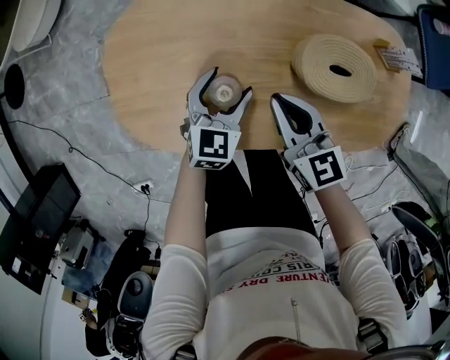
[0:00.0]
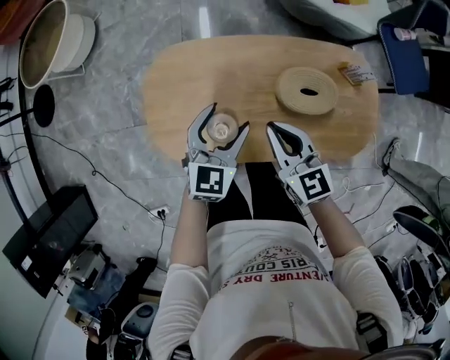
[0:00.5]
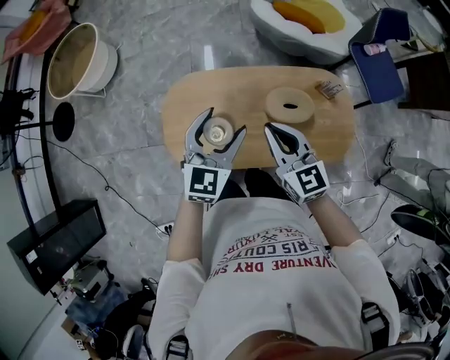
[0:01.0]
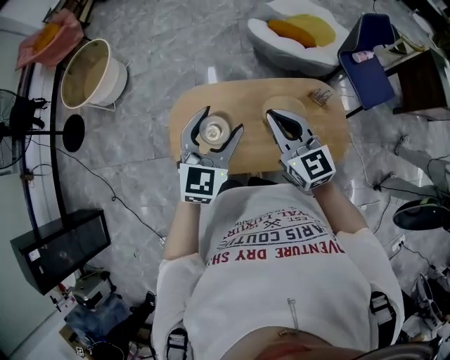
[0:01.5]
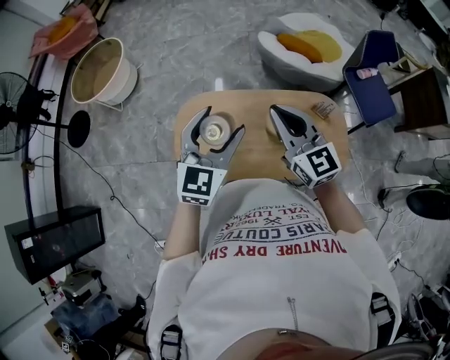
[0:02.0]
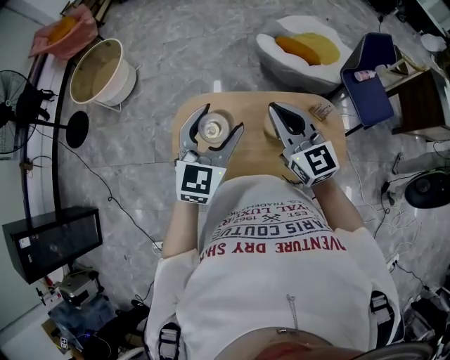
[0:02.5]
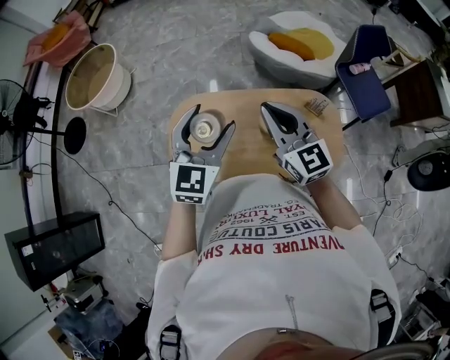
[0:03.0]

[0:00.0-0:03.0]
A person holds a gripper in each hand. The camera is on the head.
0:00.0 to 0:01.5: The two grippers go about 40 cm upward. The left gripper turns by approximately 30 degrees; the right gripper changes its angle by approximately 20 degrees.
0:01.5 to 0:03.0: The grippers stay close to where they were, moving slightly.

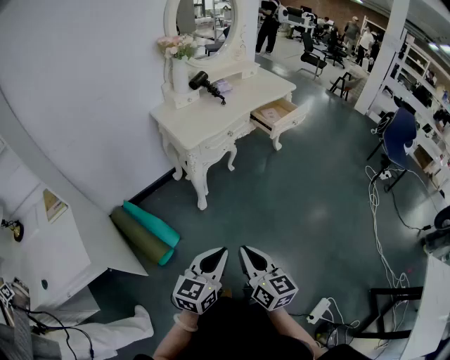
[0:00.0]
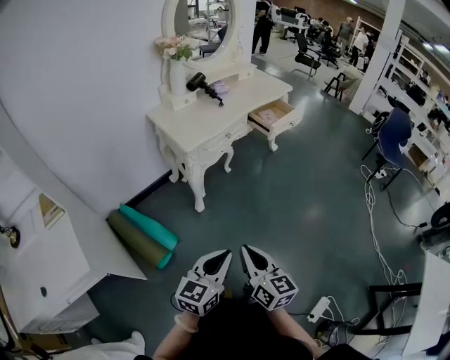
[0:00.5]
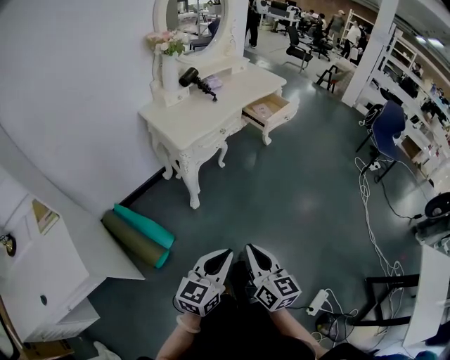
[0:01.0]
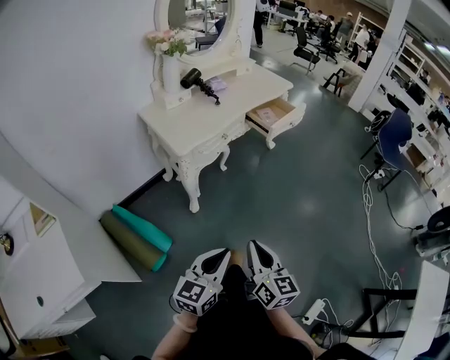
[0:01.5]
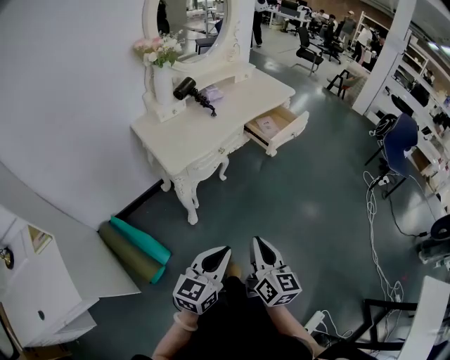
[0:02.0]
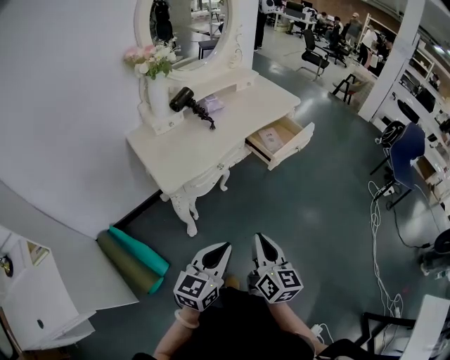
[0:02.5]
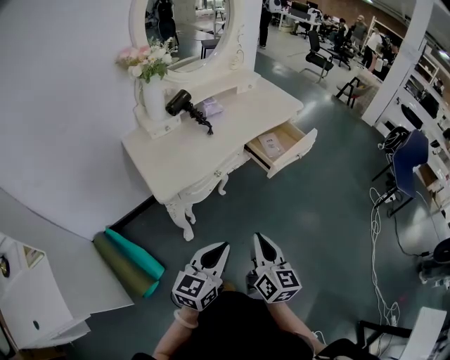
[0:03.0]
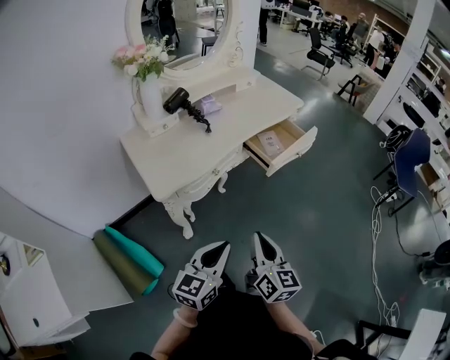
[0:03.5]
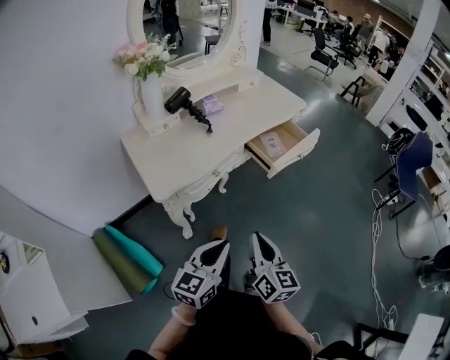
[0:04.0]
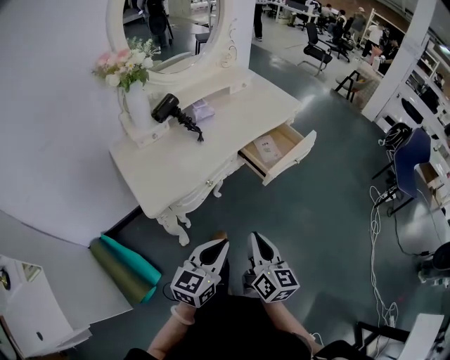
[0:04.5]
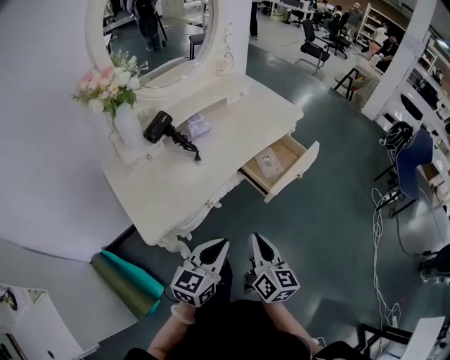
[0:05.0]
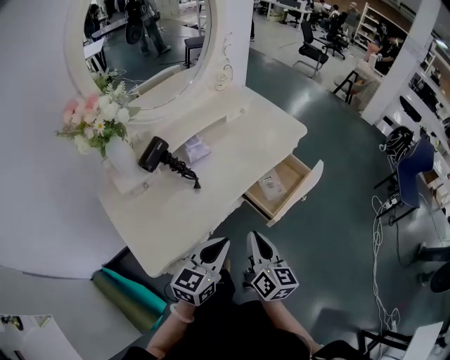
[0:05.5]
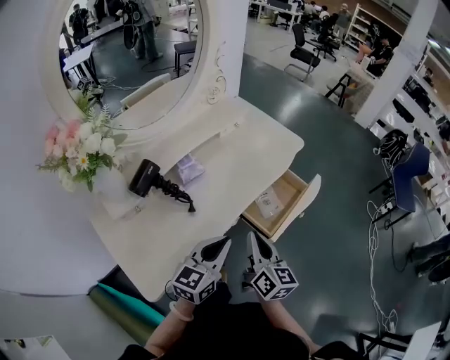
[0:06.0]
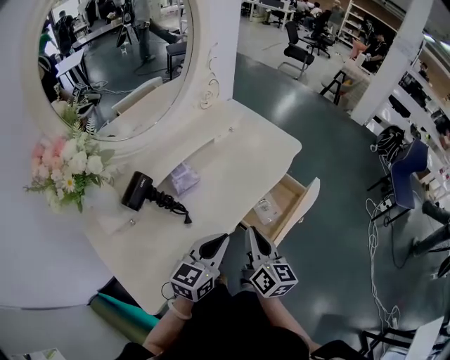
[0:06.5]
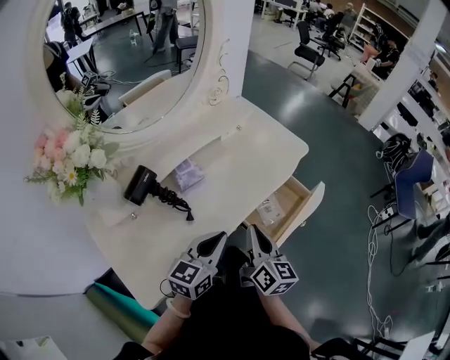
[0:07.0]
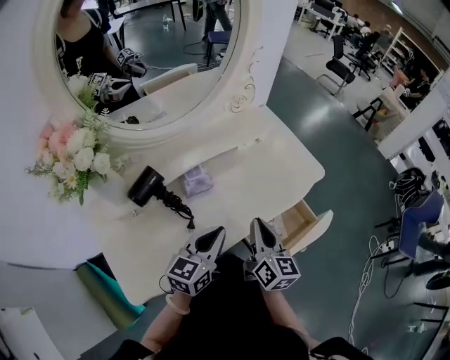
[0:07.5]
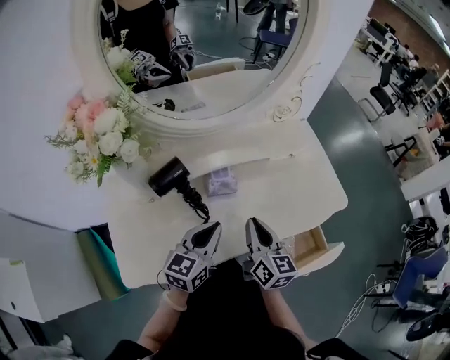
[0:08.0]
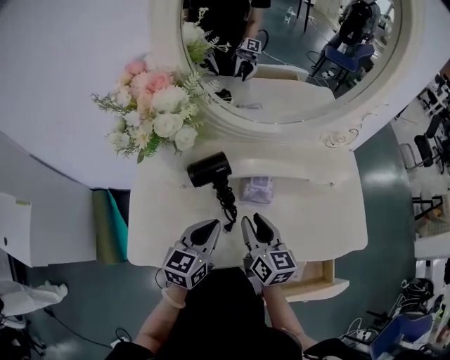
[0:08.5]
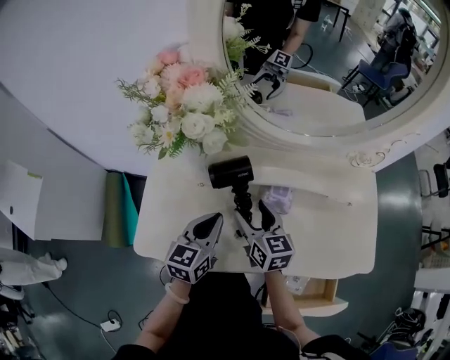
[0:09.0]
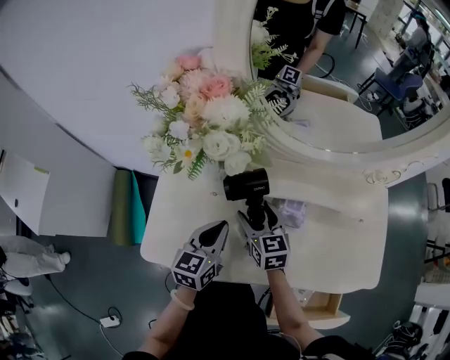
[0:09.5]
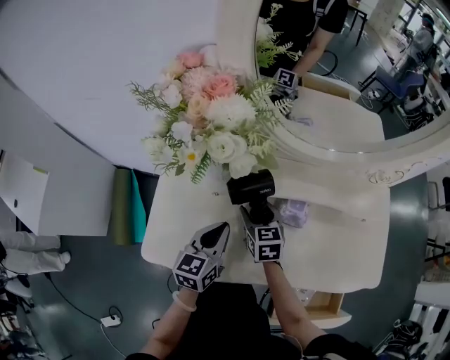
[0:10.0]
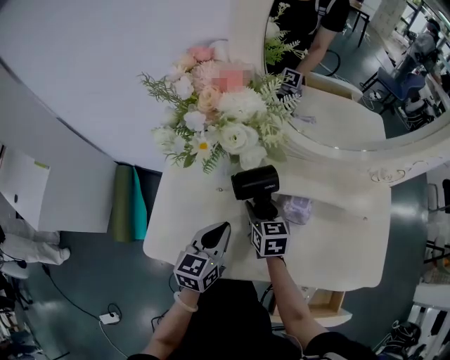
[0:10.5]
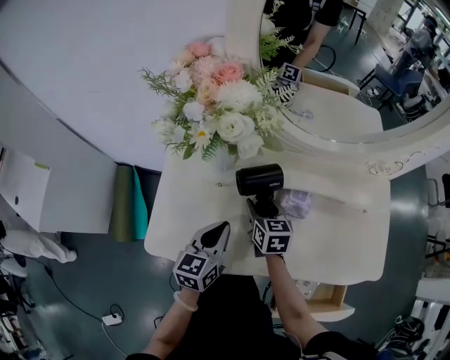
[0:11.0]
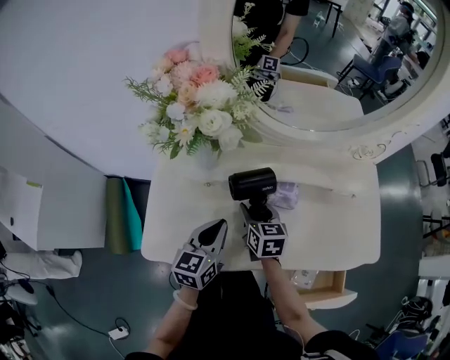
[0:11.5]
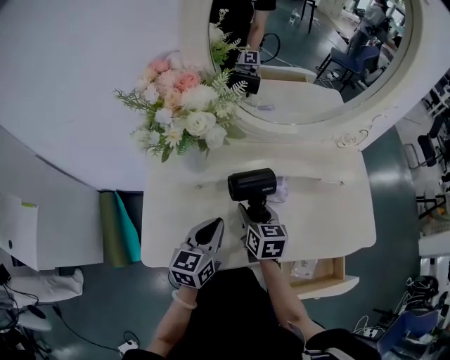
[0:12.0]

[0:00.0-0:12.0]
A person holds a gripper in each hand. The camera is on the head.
0:00.0 to 0:02.0: Both grippers move forward, some 15 cm.
0:02.0 to 0:04.0: Both grippers move forward, approximately 15 cm.
0:04.0 to 0:06.0: Both grippers travel together forward, about 35 cm.
0:06.0 to 0:08.0: The right gripper changes place by roughly 20 cm, and swivels some 30 degrees, while the left gripper changes place by approximately 15 cm, and changes its angle by approximately 30 degrees.
0:08.0 to 0:10.0: The right gripper changes place by about 25 cm, rotates roughly 50 degrees, and opens. Meanwhile the left gripper shifts by some 15 cm, and turns by roughly 30 degrees.
0:10.0 to 0:12.0: The right gripper is displaced backward by some 5 cm.

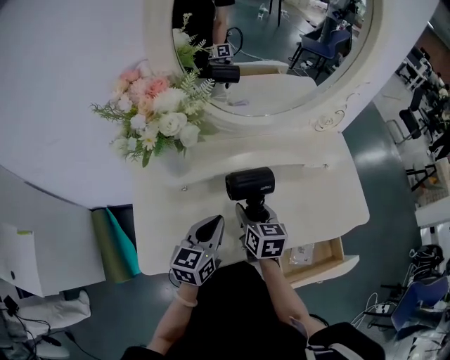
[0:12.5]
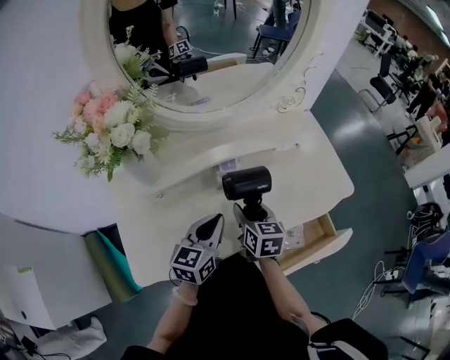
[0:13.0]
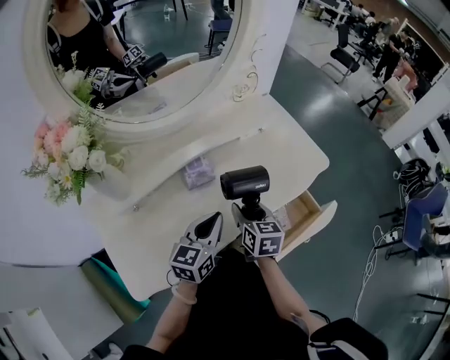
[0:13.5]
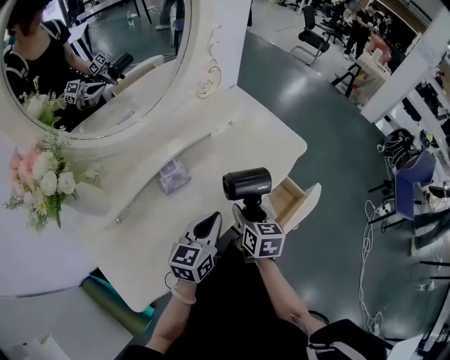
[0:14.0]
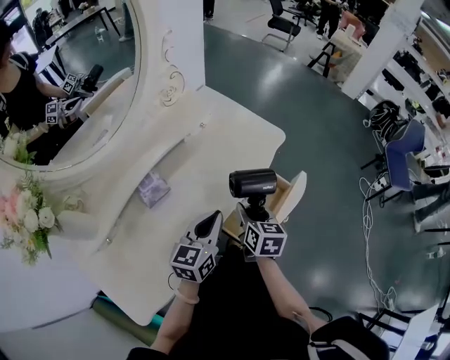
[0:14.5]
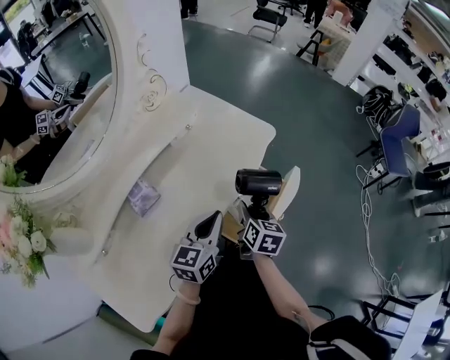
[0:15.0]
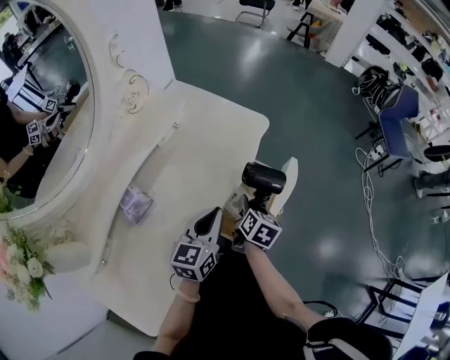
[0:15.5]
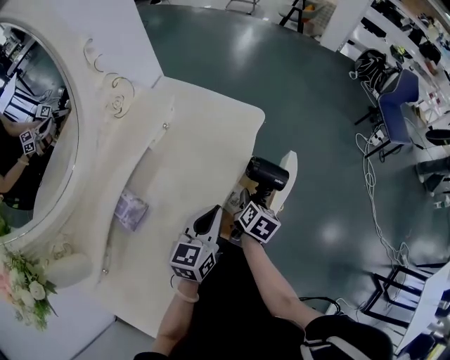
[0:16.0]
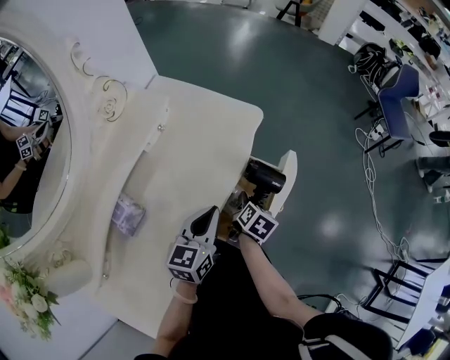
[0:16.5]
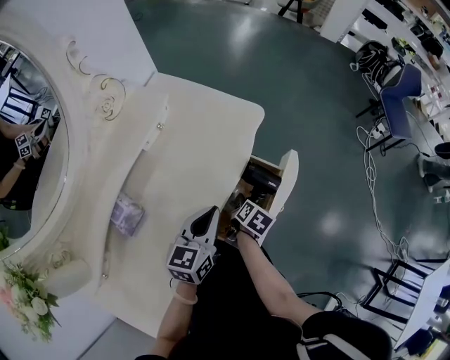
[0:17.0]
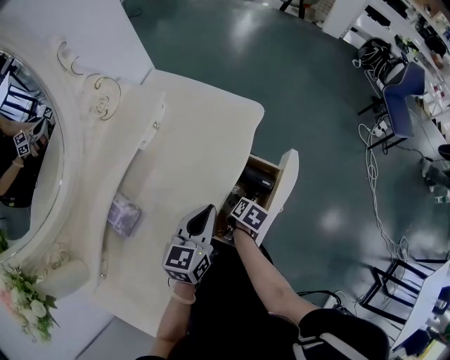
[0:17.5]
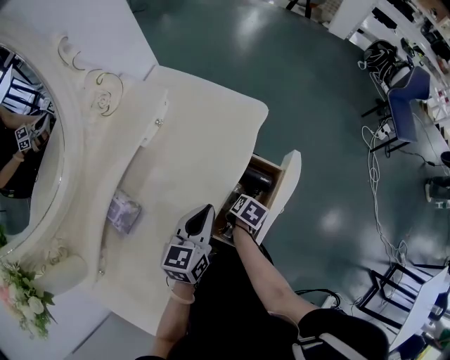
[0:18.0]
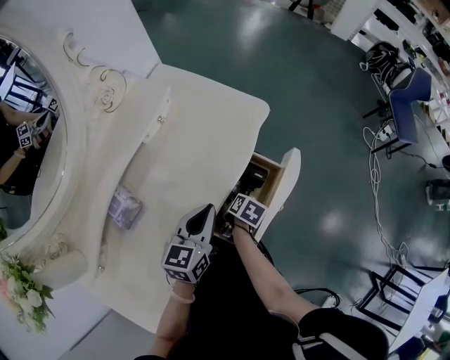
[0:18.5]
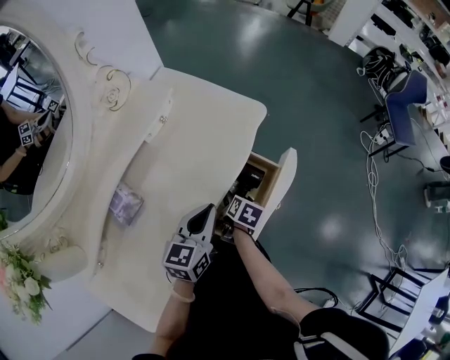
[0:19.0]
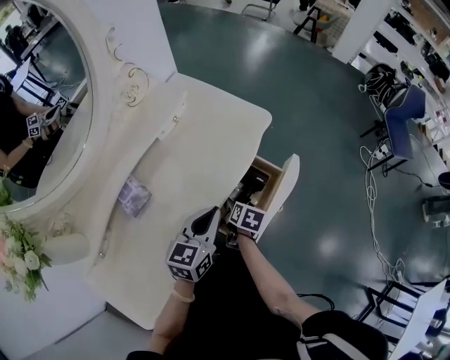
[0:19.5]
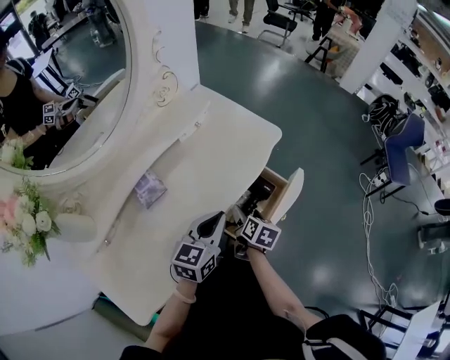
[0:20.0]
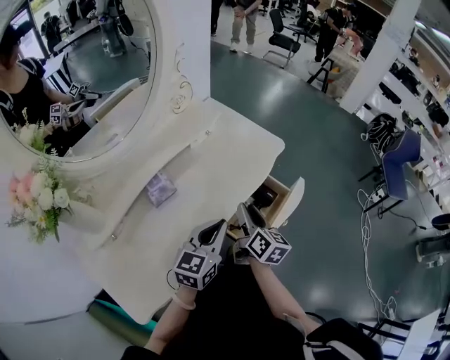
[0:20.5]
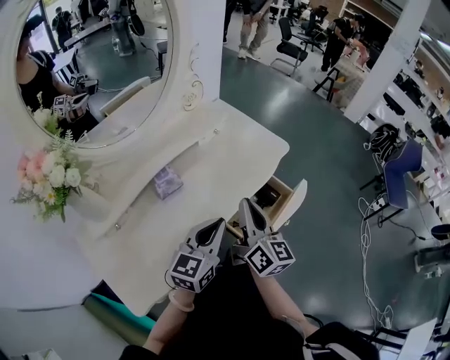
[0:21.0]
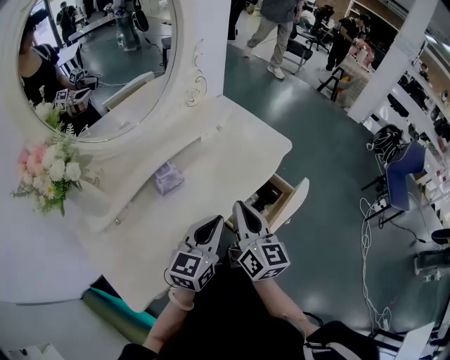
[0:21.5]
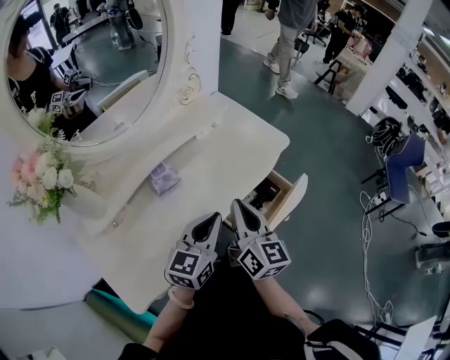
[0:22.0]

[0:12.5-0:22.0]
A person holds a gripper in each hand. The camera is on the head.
0:12.5 to 0:14.5: The right gripper changes place by some 30 cm, and turns by about 50 degrees. Meanwhile the left gripper moves approximately 25 cm, and turns by roughly 40 degrees.
0:14.5 to 0:16.5: The left gripper heads forward, covering about 5 cm, while the right gripper goes roughly 15 cm downward and to the right, and swivels approximately 50 degrees.
0:16.5 to 0:18.0: The right gripper travels downward by roughly 5 cm.
0:18.0 to 0:20.0: The left gripper shifts roughly 10 cm backward and upward, while the right gripper heads upward, covering some 10 cm, and swivels approximately 30 degrees.
0:20.0 to 0:22.0: The right gripper shifts roughly 25 cm upward, tips its fingers upward by about 40 degrees, and closes; the left gripper goes about 10 cm upward and backward.

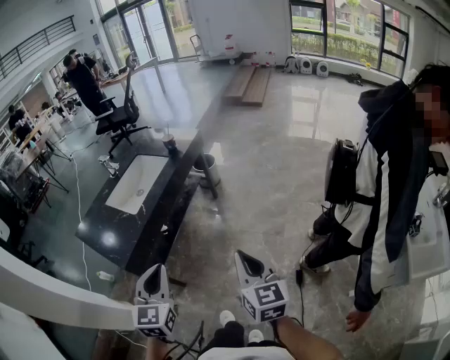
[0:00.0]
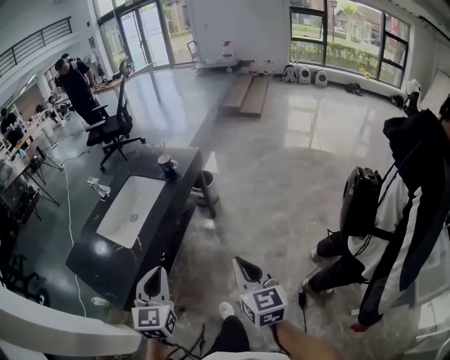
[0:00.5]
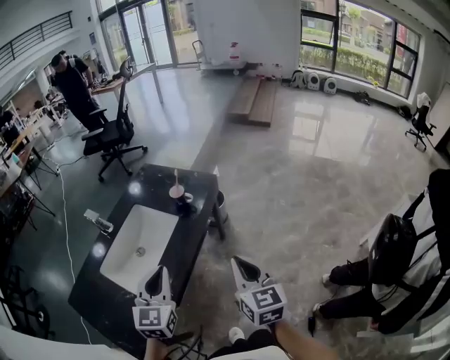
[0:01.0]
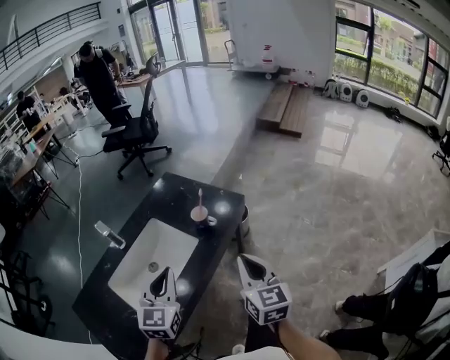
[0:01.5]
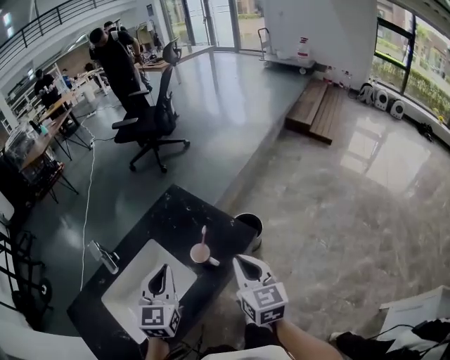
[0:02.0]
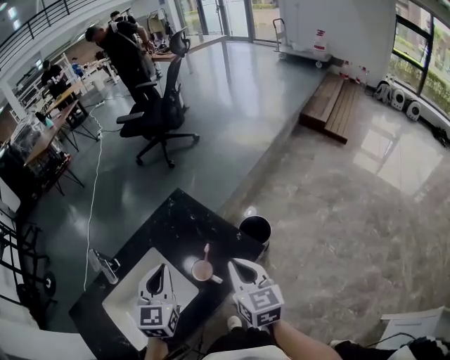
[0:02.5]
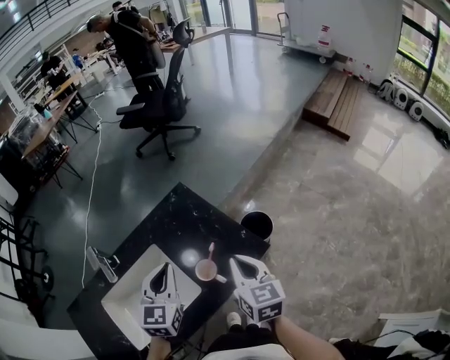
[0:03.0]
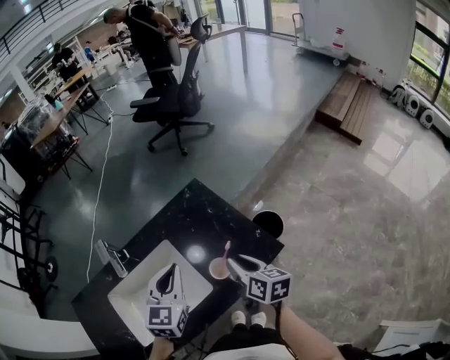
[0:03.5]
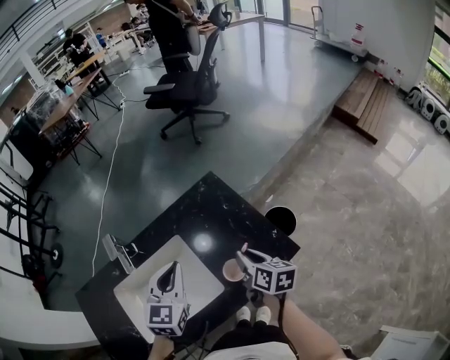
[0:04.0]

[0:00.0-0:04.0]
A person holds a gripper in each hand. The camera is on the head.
0:00.0 to 0:02.0: The pair of grippers is taken forward, approximately 70 cm. The right gripper rotates some 20 degrees.
0:02.0 to 0:04.0: The right gripper heads forward, downward and to the left, covering about 20 cm, swivels about 40 degrees, and opens. Meanwhile the left gripper heads forward and to the left, covering about 10 cm.
